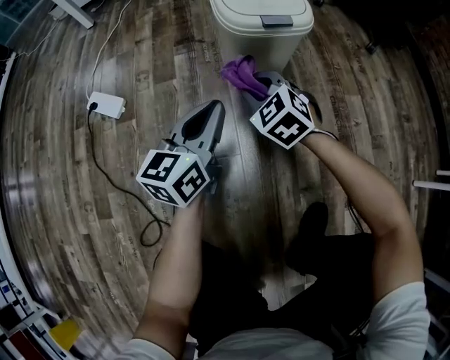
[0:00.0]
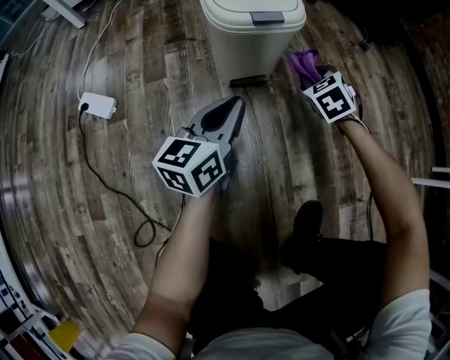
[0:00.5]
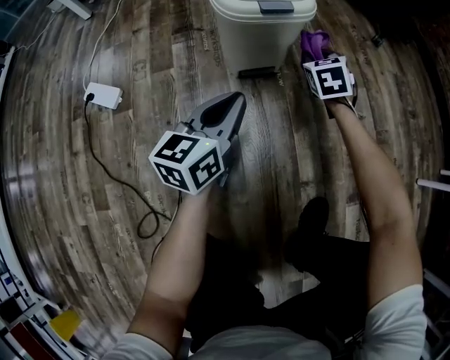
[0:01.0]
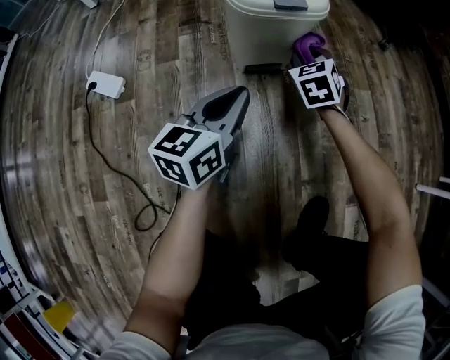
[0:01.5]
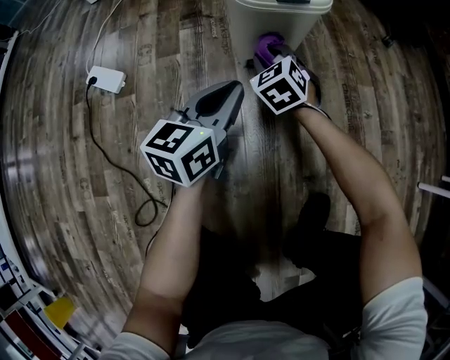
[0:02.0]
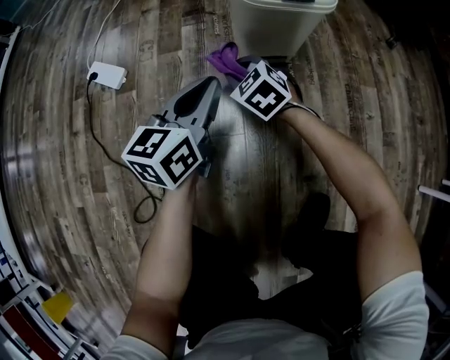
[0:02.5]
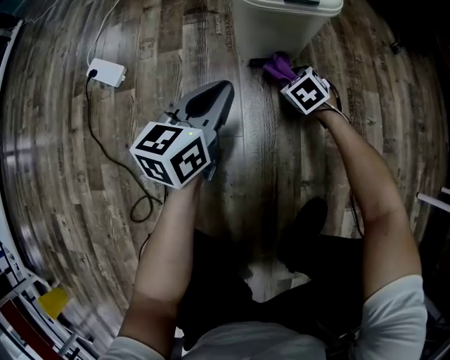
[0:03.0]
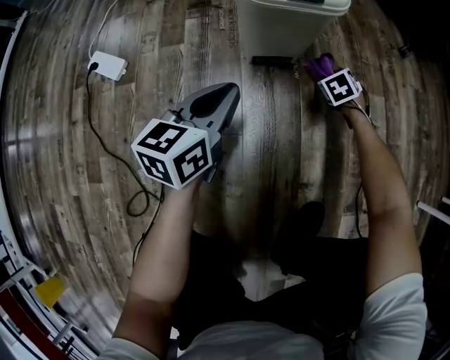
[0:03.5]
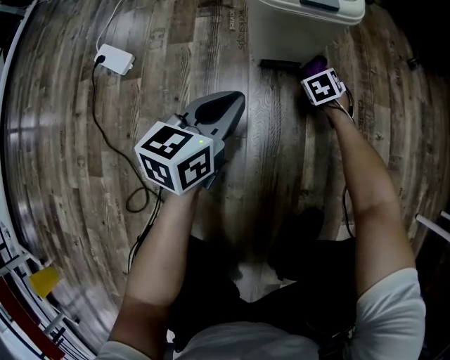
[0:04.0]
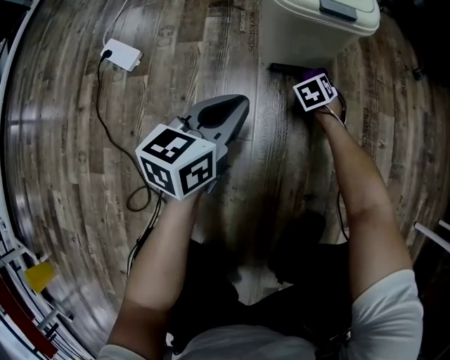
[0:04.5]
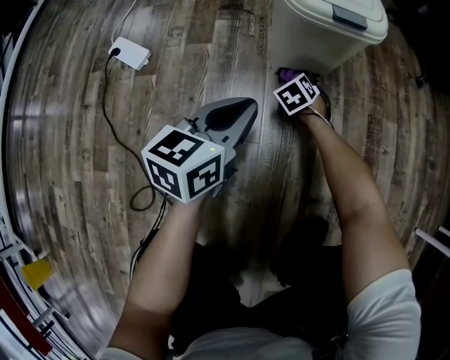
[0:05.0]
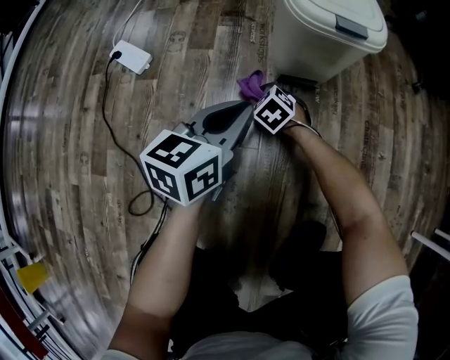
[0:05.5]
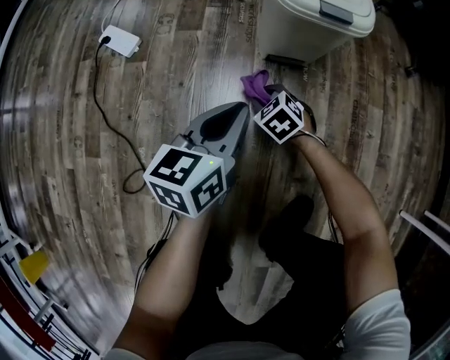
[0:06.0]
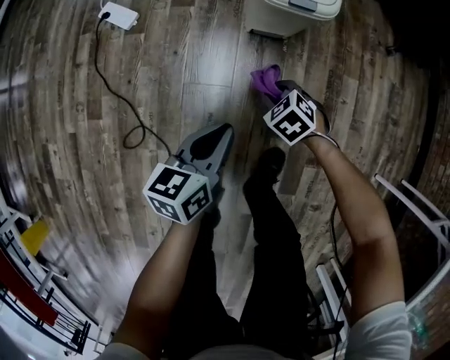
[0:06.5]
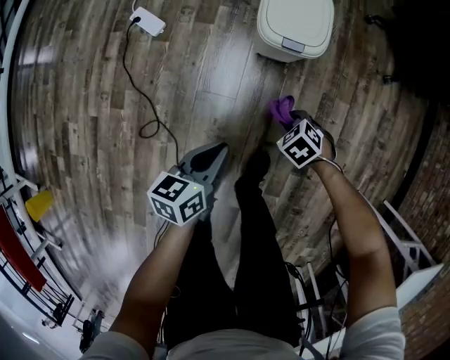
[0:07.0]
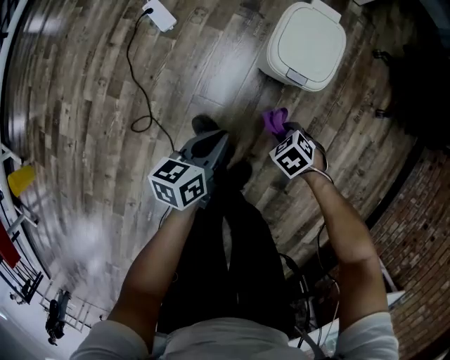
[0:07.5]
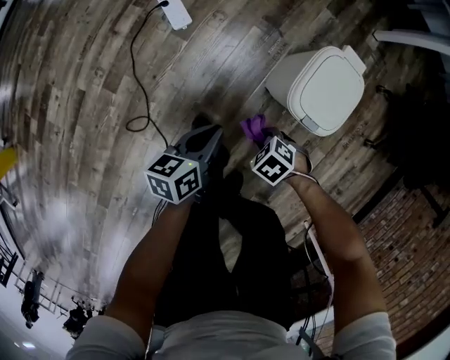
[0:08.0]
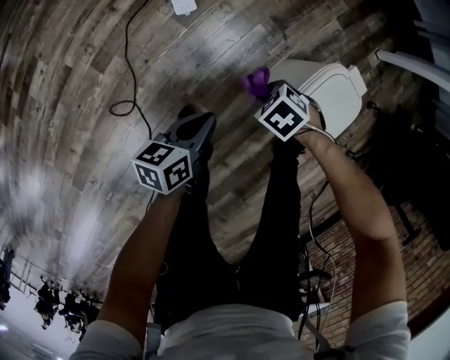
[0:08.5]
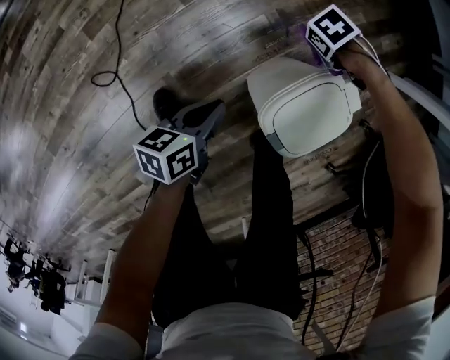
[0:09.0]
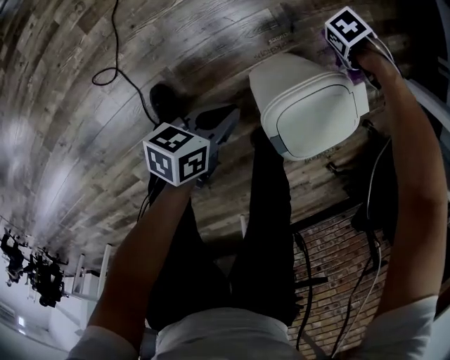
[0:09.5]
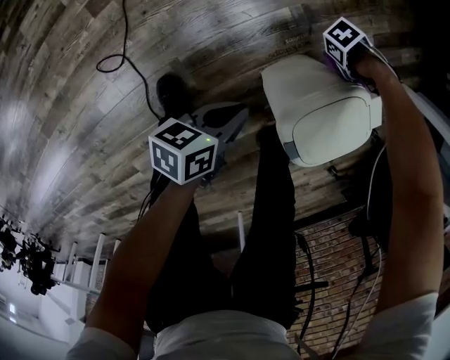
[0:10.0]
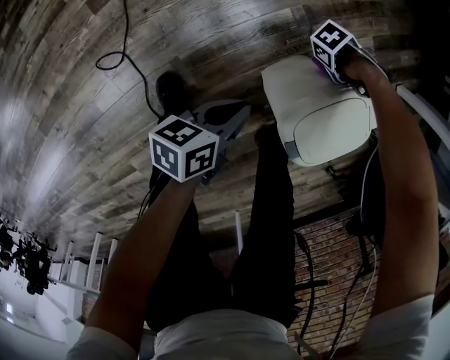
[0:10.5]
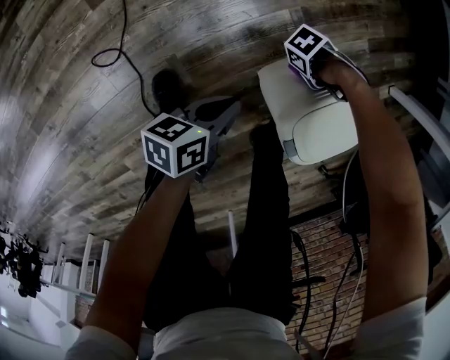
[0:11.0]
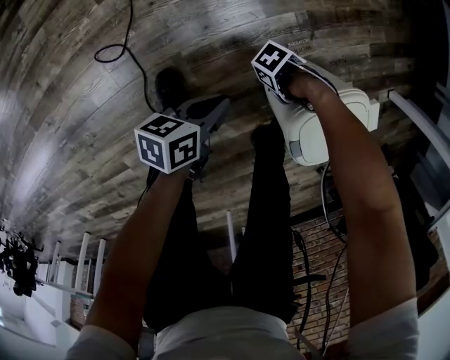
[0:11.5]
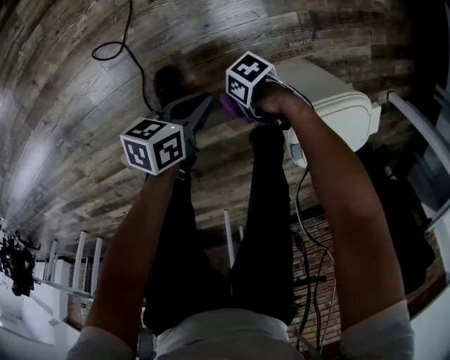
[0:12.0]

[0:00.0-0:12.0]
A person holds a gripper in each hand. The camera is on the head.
0:04.0 to 0:06.0: The left gripper moves roughly 5 cm.
0:06.0 to 0:08.0: The left gripper moves upward, roughly 15 cm, and changes its angle by approximately 40 degrees.
0:08.0 to 0:10.0: The left gripper shifts by about 15 cm.
0:10.0 to 0:12.0: The left gripper shifts by roughly 10 cm.

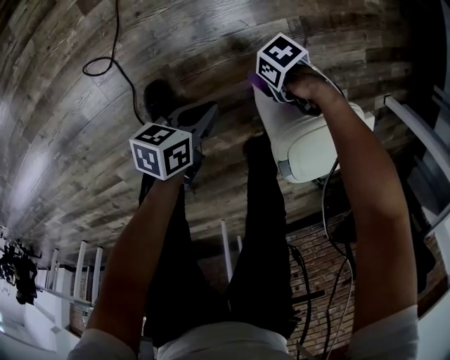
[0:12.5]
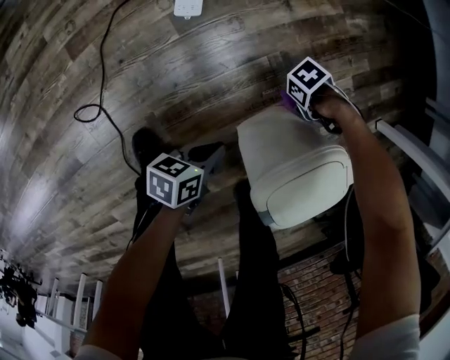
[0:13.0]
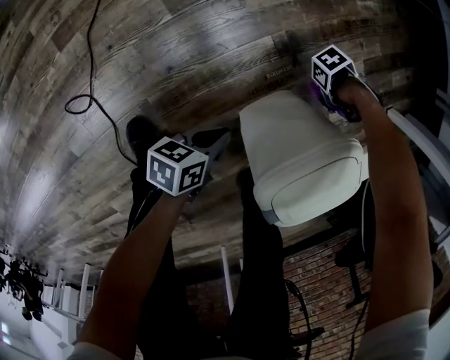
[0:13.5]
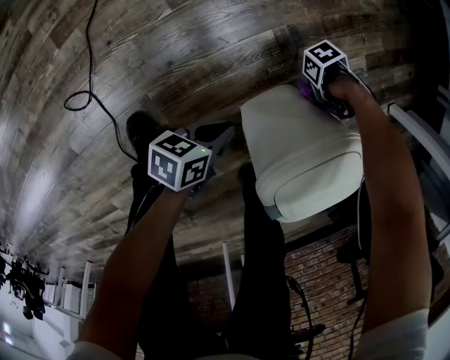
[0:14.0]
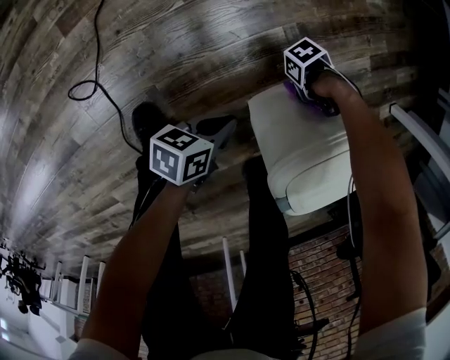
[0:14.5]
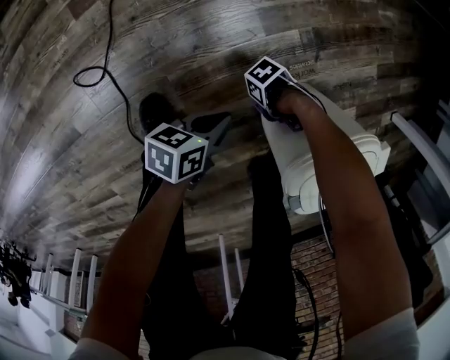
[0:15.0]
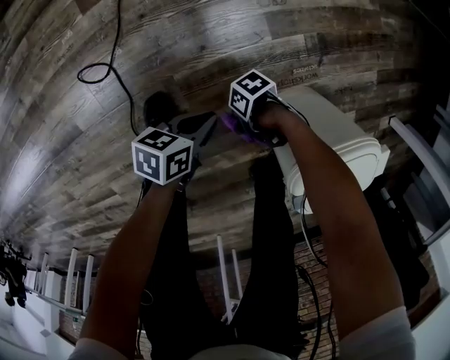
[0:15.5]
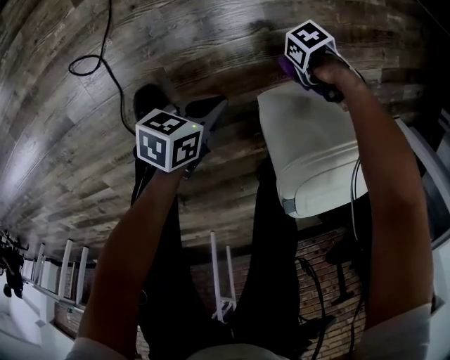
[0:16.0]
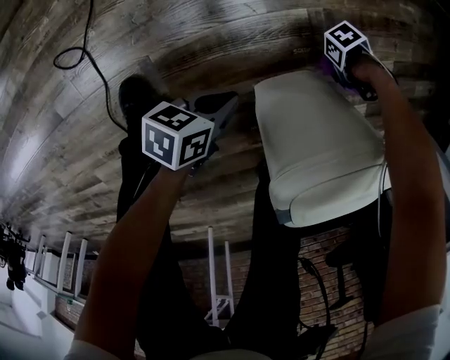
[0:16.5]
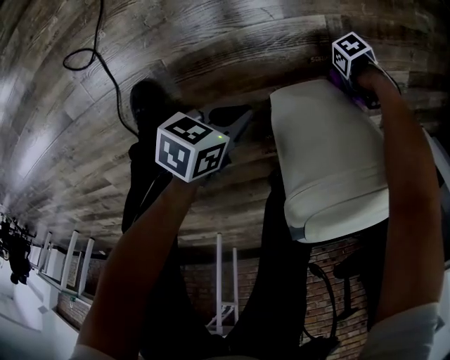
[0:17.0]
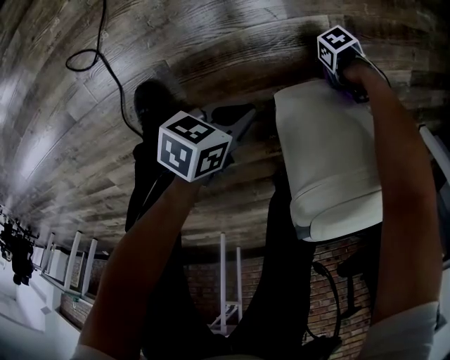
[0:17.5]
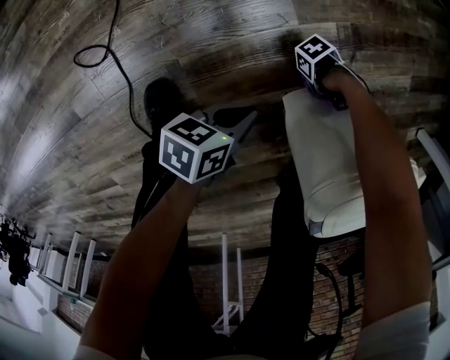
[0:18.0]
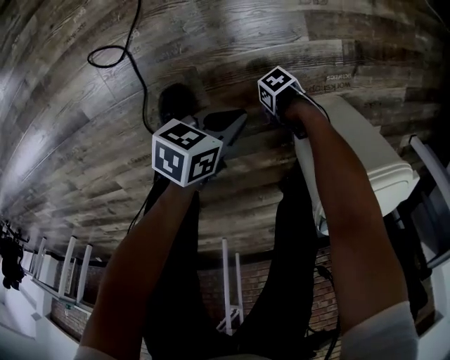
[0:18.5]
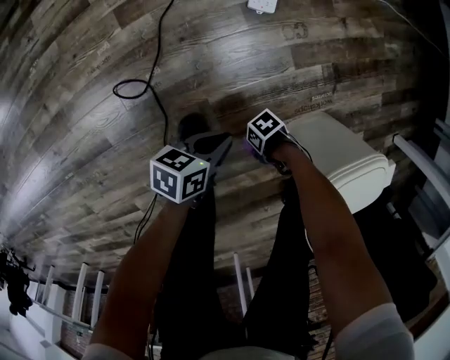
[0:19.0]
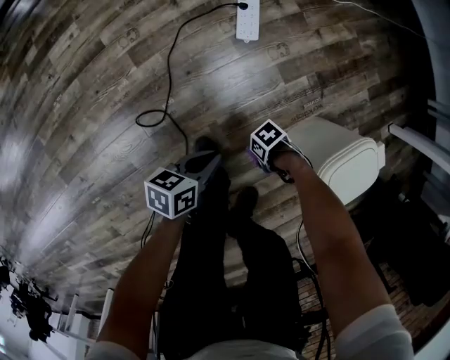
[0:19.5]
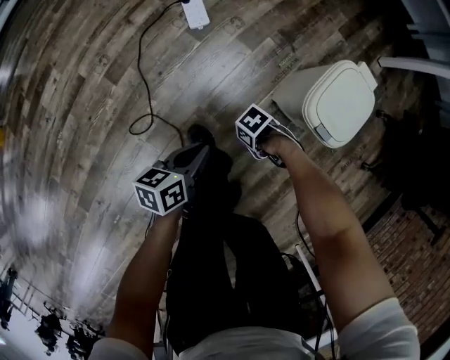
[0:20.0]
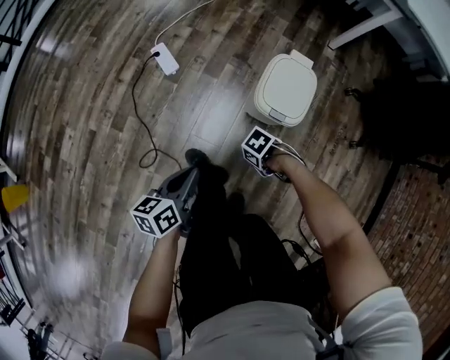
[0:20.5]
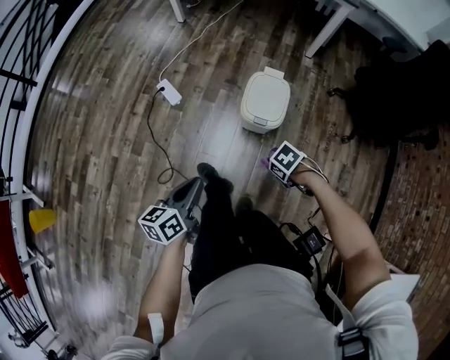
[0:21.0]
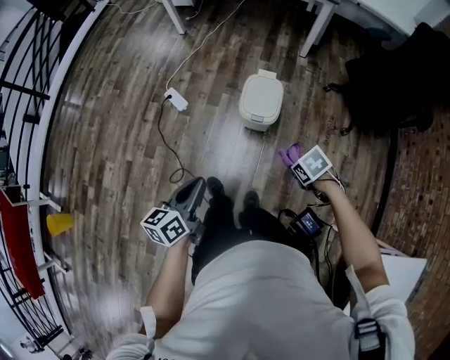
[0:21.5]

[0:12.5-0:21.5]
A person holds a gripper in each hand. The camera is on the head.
0:12.5 to 0:14.5: The left gripper moves about 10 cm.
0:14.5 to 0:17.0: The left gripper shifts some 5 cm downward.
0:17.0 to 0:19.5: The left gripper moves roughly 30 cm.
0:19.5 to 0:21.5: The left gripper heads upward, covering some 50 cm, and changes its angle by some 30 degrees.

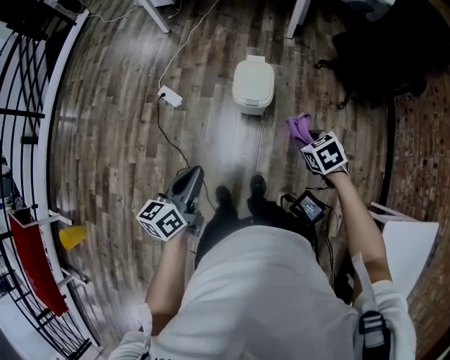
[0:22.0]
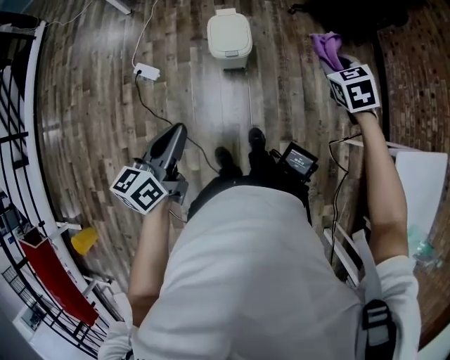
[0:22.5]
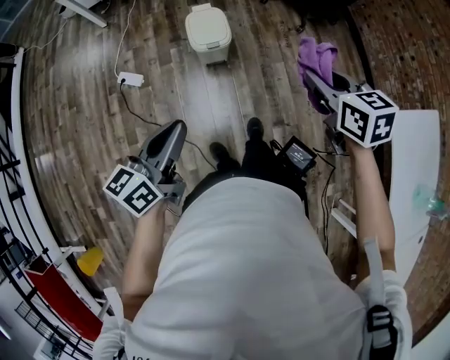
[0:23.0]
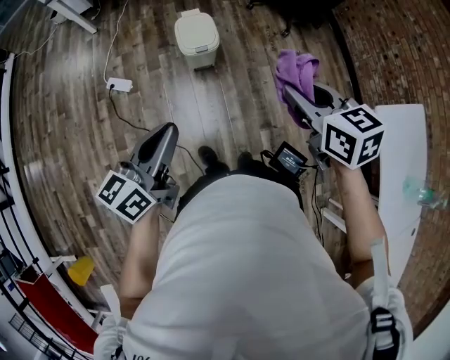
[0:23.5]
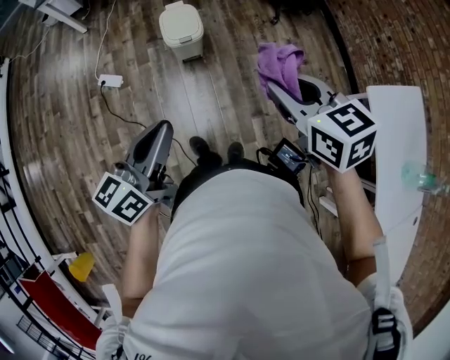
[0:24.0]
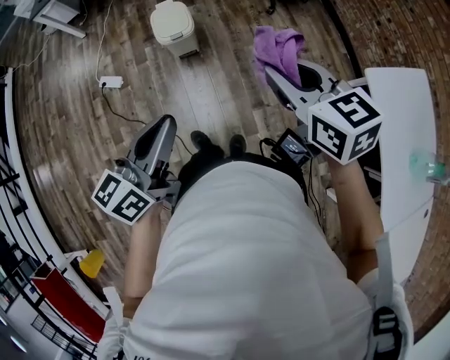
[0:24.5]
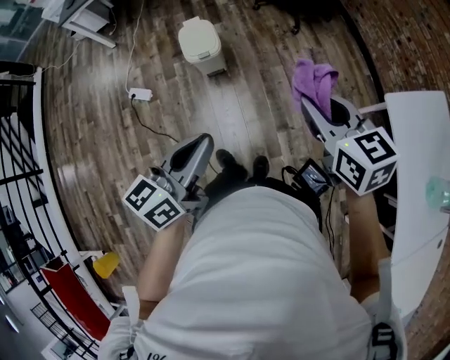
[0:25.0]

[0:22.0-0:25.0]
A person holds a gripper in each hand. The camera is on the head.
0:22.0 to 0:23.5: The left gripper moves about 10 cm, and swivels about 30 degrees.
0:23.5 to 0:25.0: The left gripper ends up approximately 20 cm from where it was.

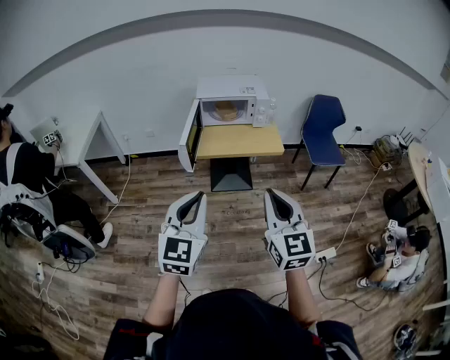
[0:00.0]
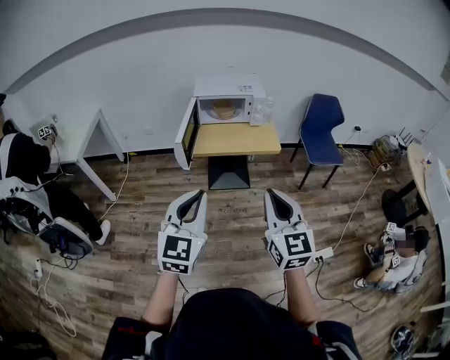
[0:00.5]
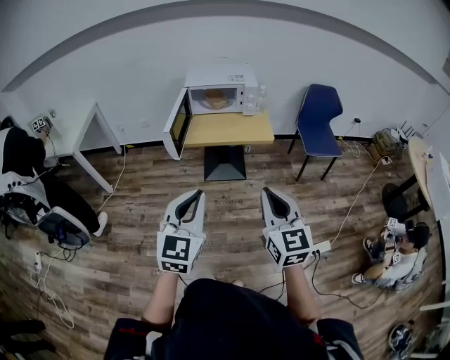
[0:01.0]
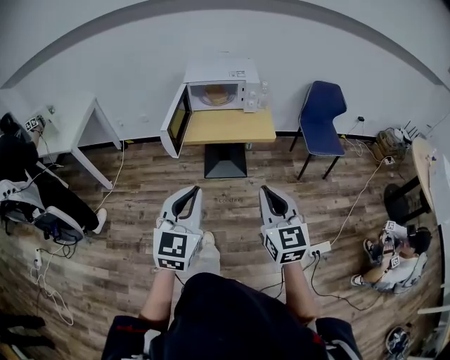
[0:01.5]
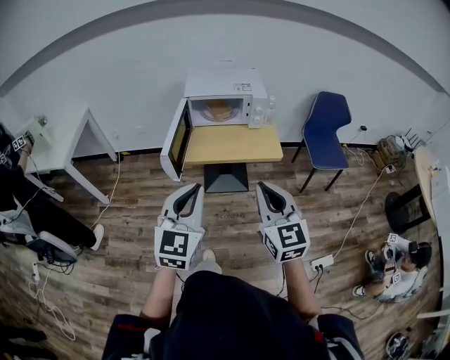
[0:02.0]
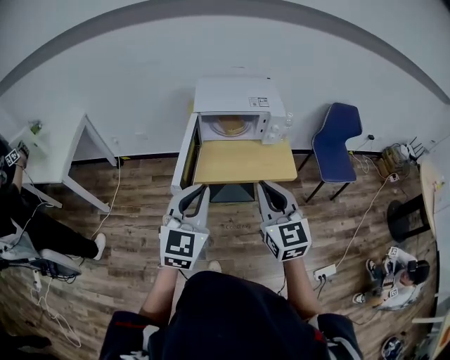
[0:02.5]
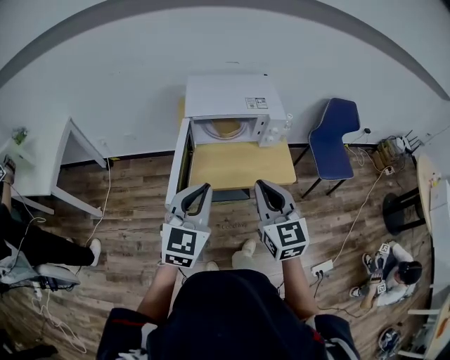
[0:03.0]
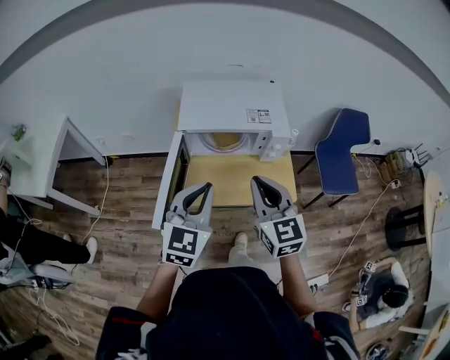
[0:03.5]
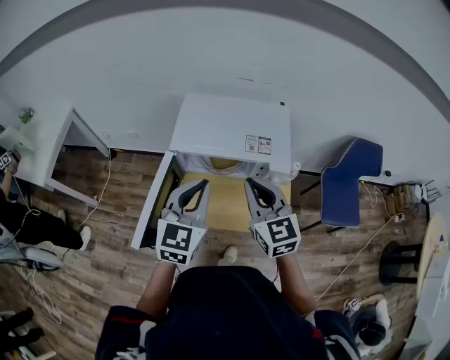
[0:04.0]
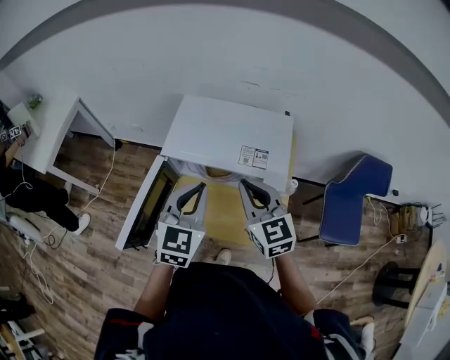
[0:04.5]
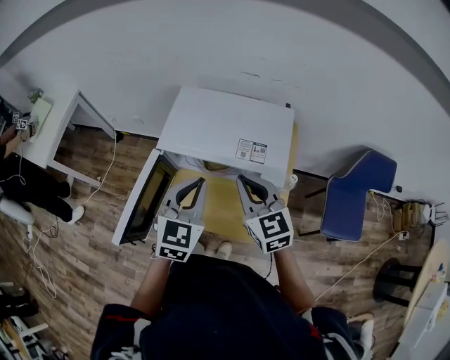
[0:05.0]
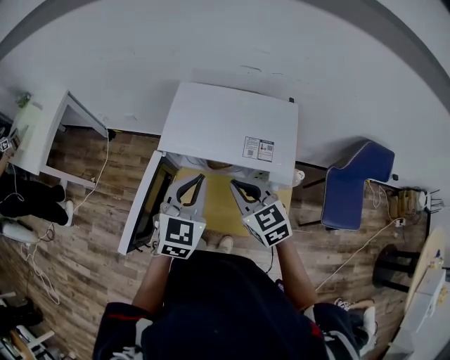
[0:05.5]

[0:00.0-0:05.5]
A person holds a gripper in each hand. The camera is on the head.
0:00.0 to 0:02.0: Both grippers travel together forward, about 15 cm.
0:02.0 to 0:03.5: The grippers both shift forward by some 35 cm.
0:03.5 to 0:05.5: The left gripper travels forward and to the right by roughly 20 cm. The right gripper goes approximately 20 cm forward and downward, and rotates about 30 degrees.
